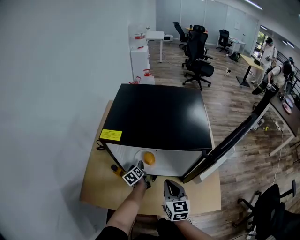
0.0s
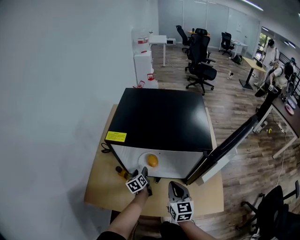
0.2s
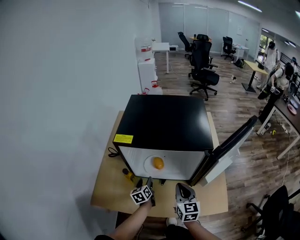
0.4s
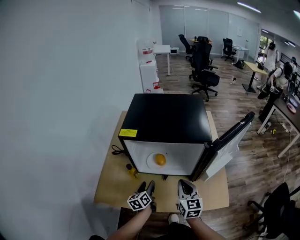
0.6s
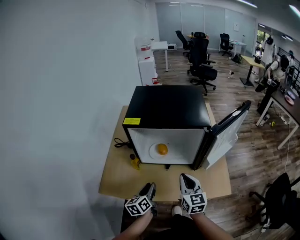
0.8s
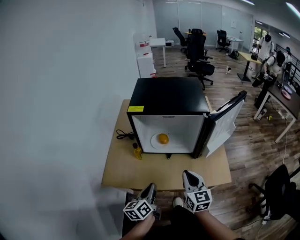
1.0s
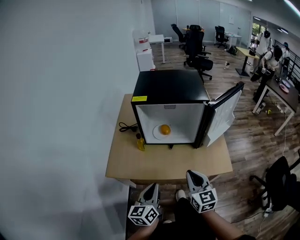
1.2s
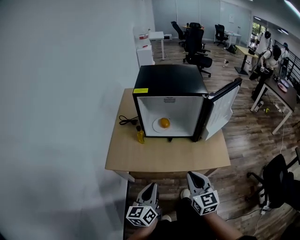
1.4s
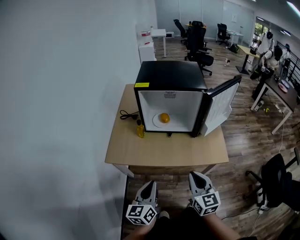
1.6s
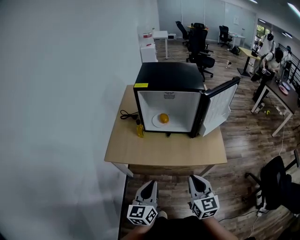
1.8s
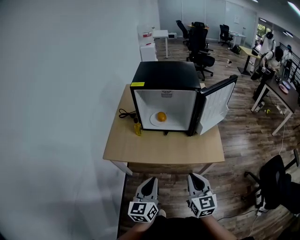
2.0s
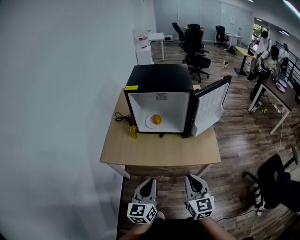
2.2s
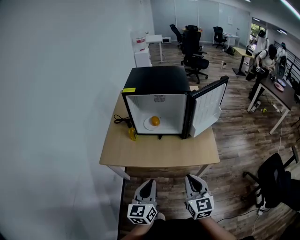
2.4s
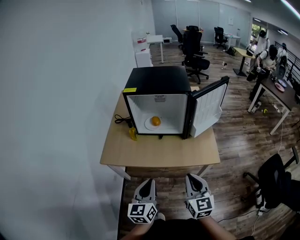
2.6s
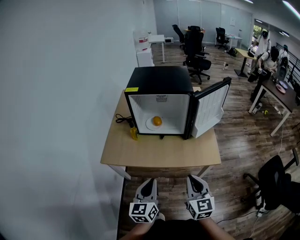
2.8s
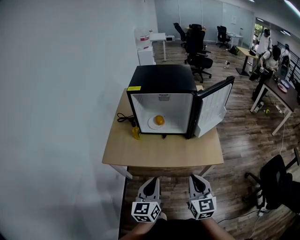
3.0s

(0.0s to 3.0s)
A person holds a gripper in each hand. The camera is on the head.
0.0s - 1.6s: The right gripper heads backward, covering roughly 35 cm. Meanwhile the left gripper is displaced backward and upward by about 60 cm, swivels about 40 degrees, and closes up.
1.6s - 3.0s: Both grippers move to the right, about 5 cm.

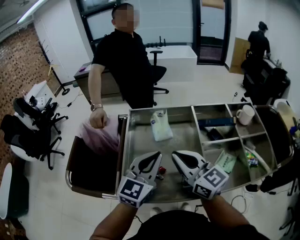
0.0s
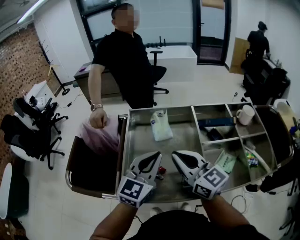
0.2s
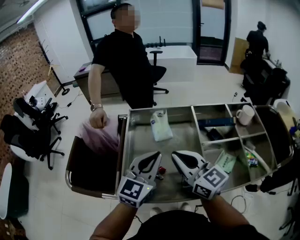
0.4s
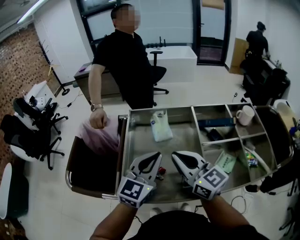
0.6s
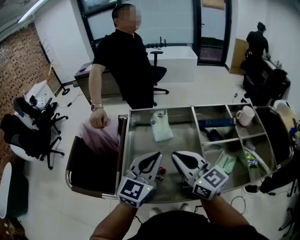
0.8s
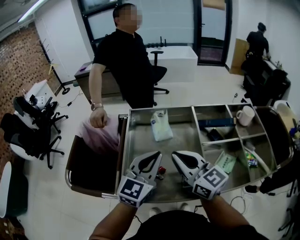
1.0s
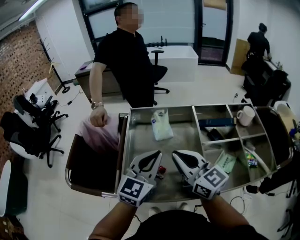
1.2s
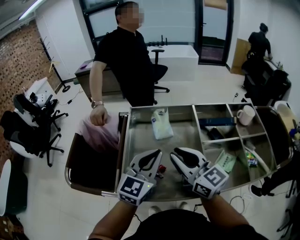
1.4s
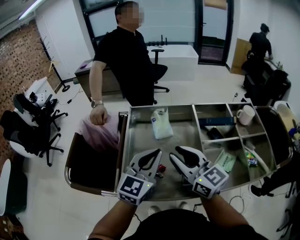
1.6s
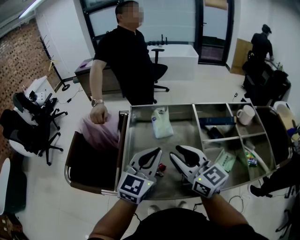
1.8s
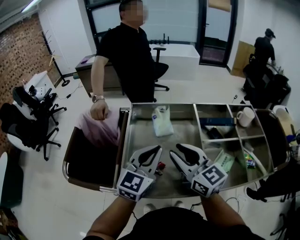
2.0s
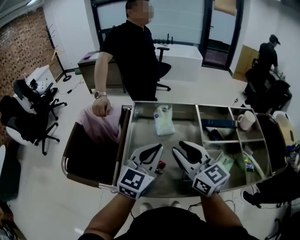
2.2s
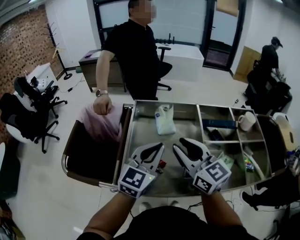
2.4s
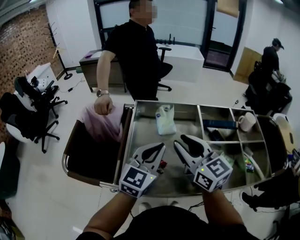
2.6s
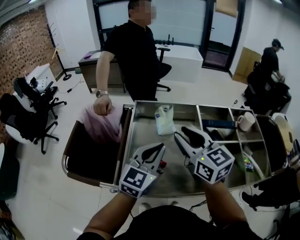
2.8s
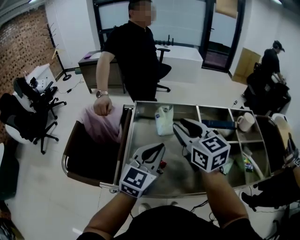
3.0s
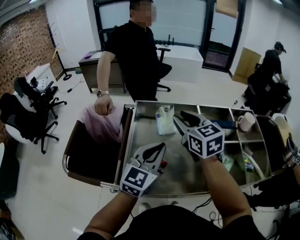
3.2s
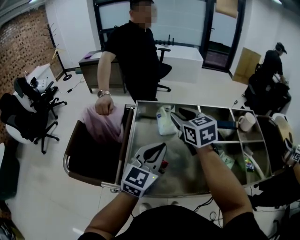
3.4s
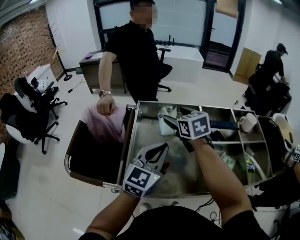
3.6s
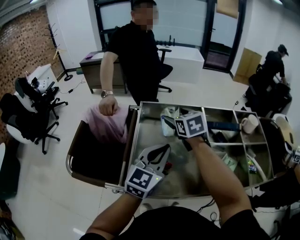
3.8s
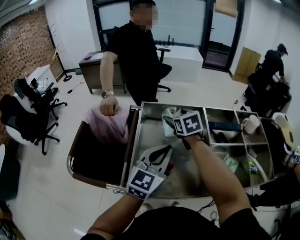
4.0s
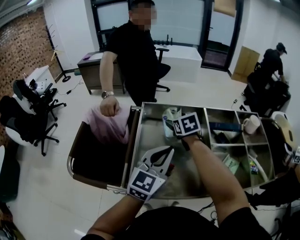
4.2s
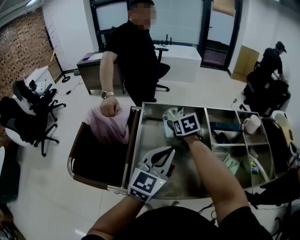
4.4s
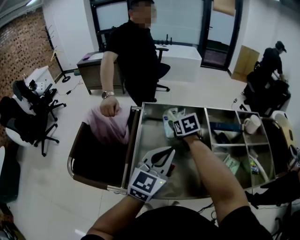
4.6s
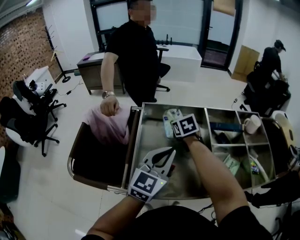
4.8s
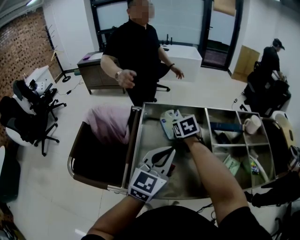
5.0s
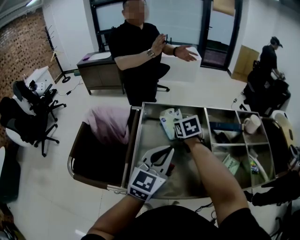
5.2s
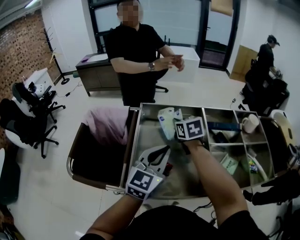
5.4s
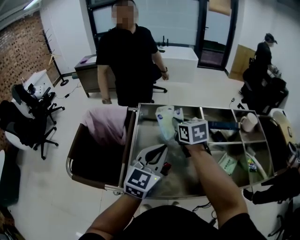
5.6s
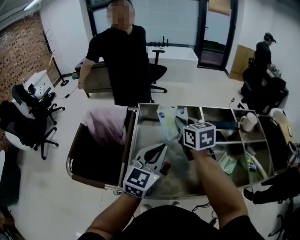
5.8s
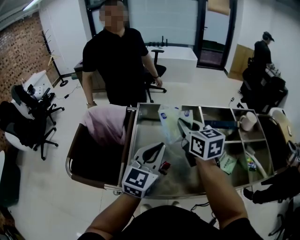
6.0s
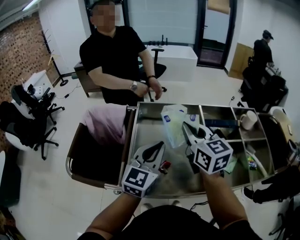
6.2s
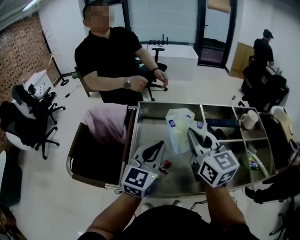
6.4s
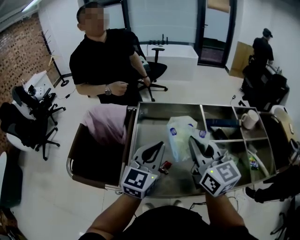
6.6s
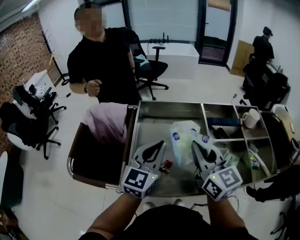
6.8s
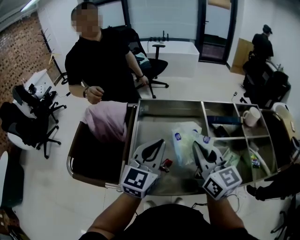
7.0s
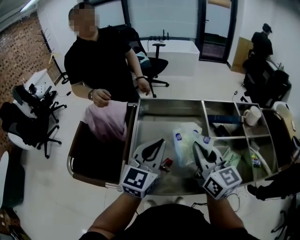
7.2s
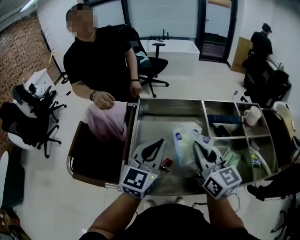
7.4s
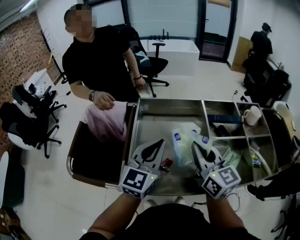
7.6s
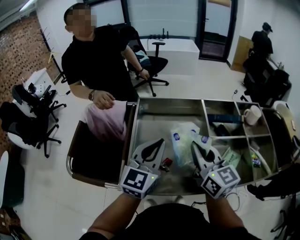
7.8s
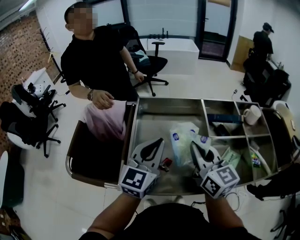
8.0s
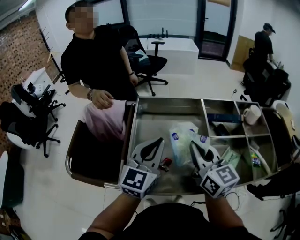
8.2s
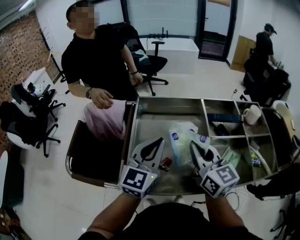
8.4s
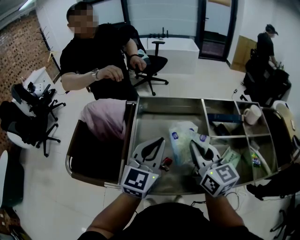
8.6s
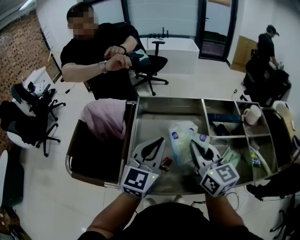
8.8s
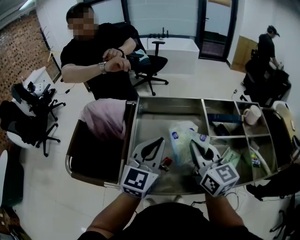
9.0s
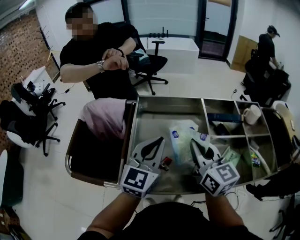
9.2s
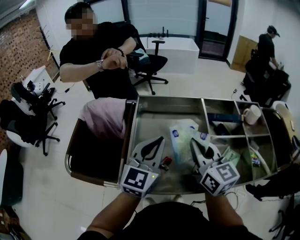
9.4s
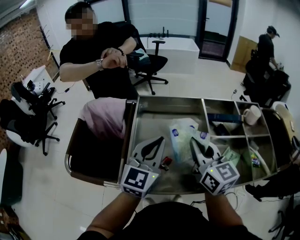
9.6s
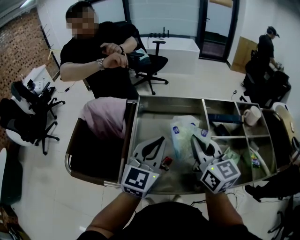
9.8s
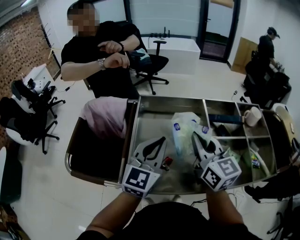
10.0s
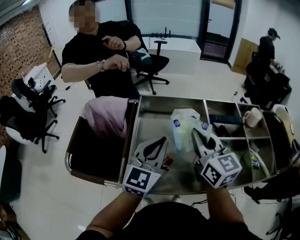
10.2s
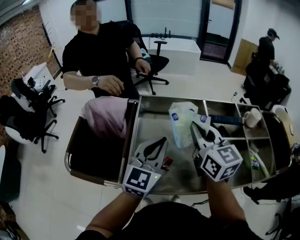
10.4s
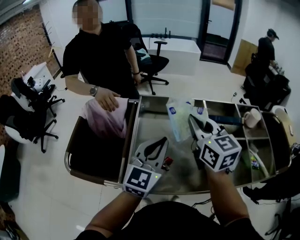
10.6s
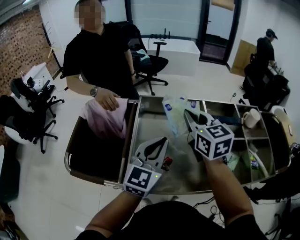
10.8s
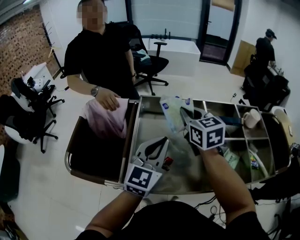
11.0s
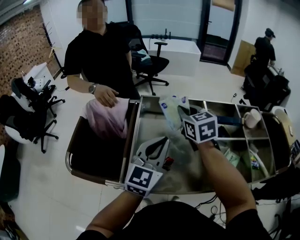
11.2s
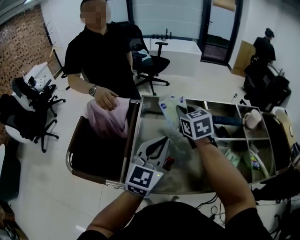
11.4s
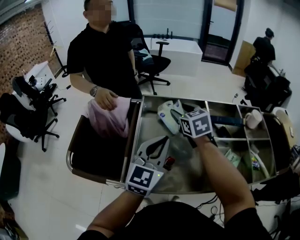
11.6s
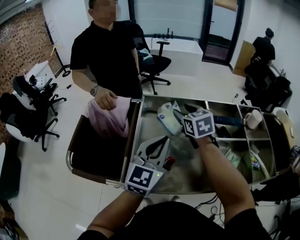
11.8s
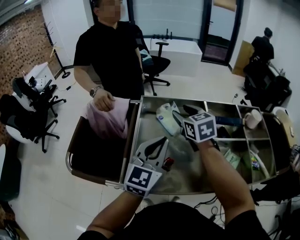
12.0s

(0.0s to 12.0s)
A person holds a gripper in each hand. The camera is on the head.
0.0s - 1.6s: The right gripper opens its fingers.
1.6s - 3.0s: The right gripper travels forward by roughly 10 cm.
3.0s - 4.4s: The right gripper heads downward and forward, covering approximately 20 cm, swivels some 30 degrees, and opens up.
4.4s - 6.0s: The right gripper heads upward and backward, covering some 15 cm, turns by roughly 30 degrees, and closes its fingers.
6.0s - 7.6s: The right gripper heads backward, covering roughly 10 cm.
7.6s - 9.0s: The two grippers keep their place.
9.0s - 10.4s: The right gripper changes place by about 5 cm.
10.4s - 12.0s: The right gripper goes about 15 cm forward and downward, rotates roughly 20 degrees, and opens its fingers.

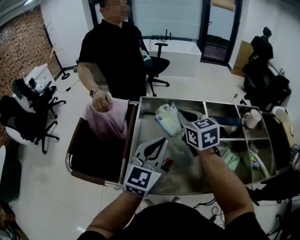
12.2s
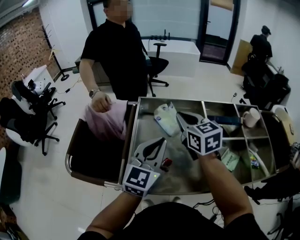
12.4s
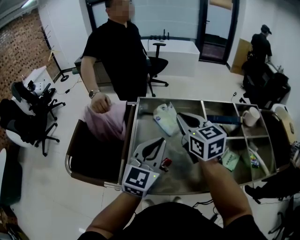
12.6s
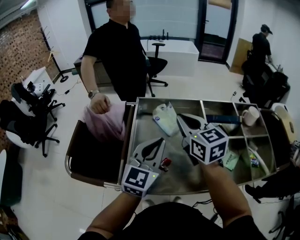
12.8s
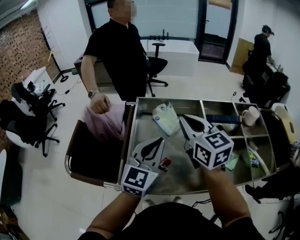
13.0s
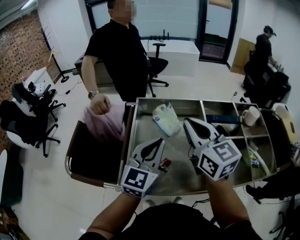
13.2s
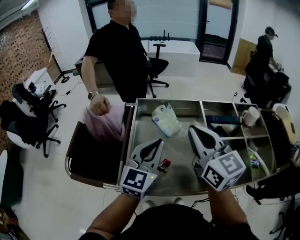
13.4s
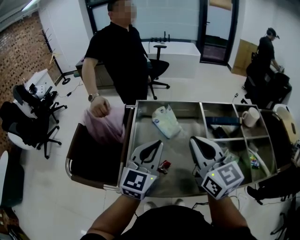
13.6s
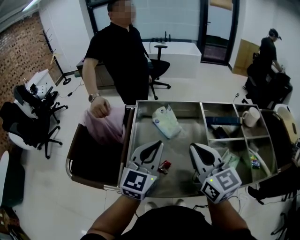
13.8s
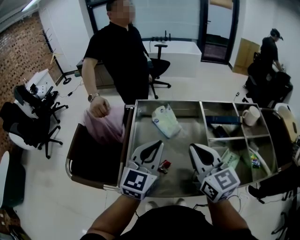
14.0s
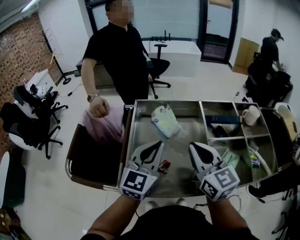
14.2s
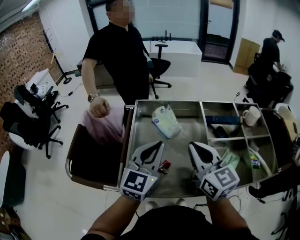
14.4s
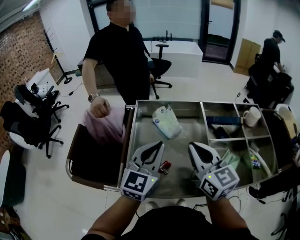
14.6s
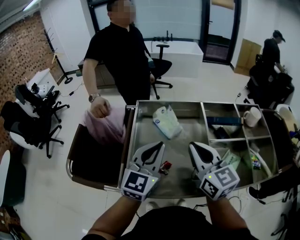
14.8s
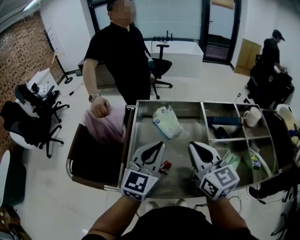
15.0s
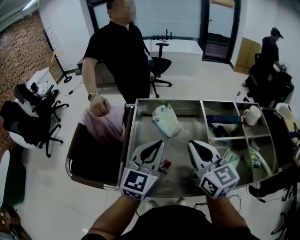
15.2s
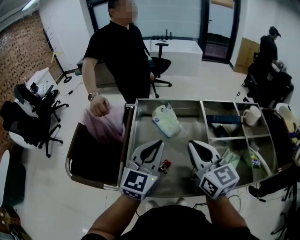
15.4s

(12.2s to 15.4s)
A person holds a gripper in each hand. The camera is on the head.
12.2s - 13.8s: The right gripper shifts approximately 15 cm backward.
13.8s - 15.4s: The grippers make only small movements.

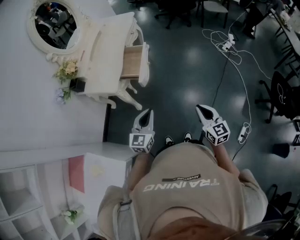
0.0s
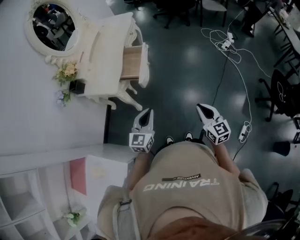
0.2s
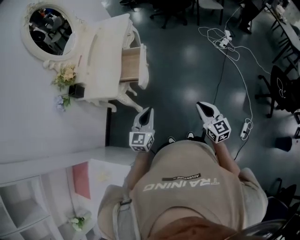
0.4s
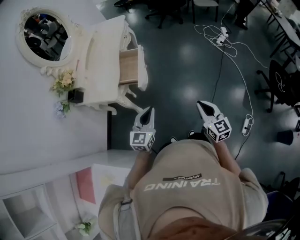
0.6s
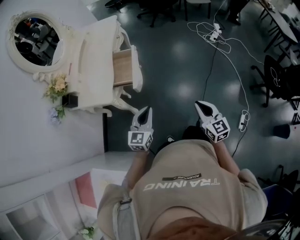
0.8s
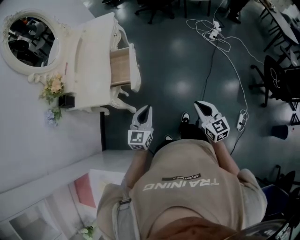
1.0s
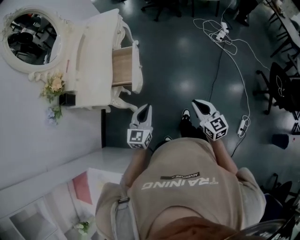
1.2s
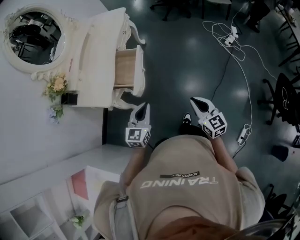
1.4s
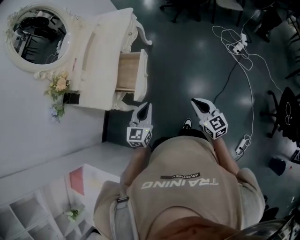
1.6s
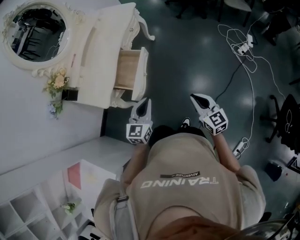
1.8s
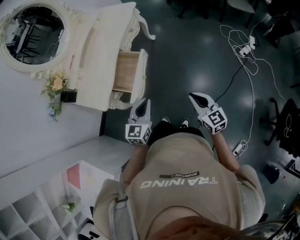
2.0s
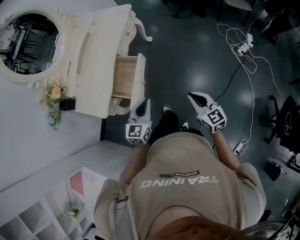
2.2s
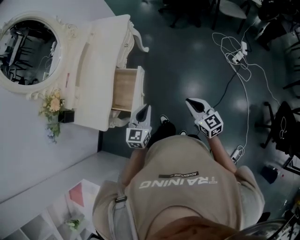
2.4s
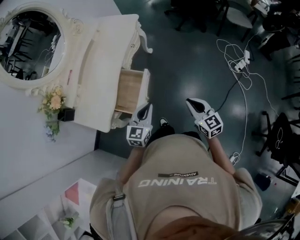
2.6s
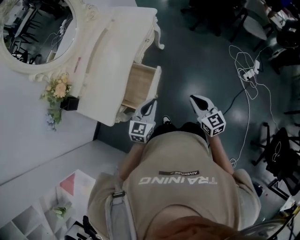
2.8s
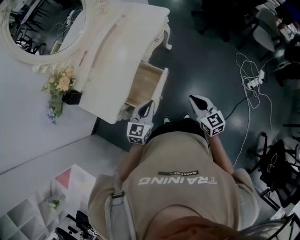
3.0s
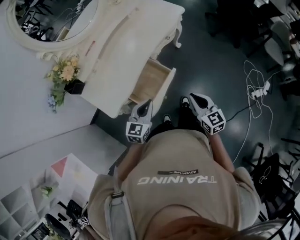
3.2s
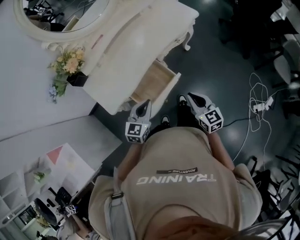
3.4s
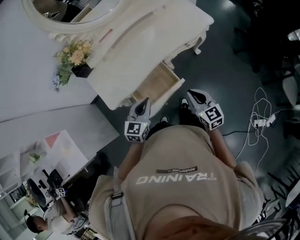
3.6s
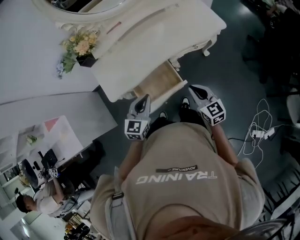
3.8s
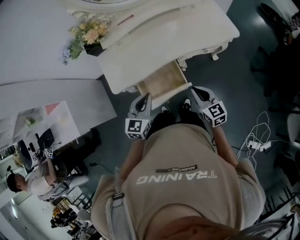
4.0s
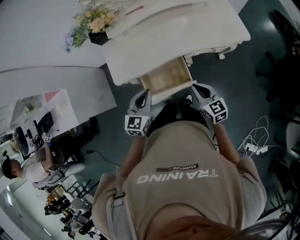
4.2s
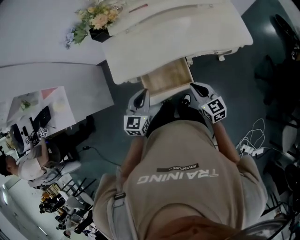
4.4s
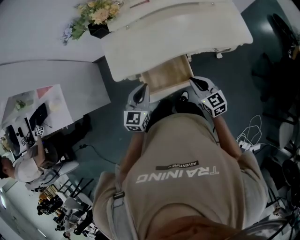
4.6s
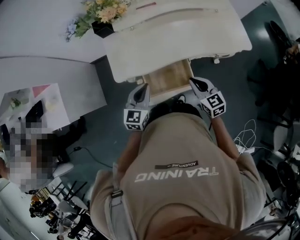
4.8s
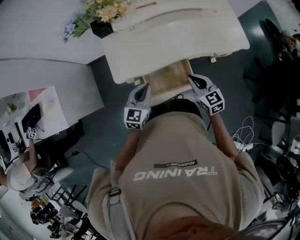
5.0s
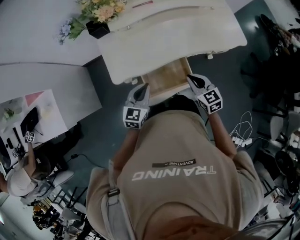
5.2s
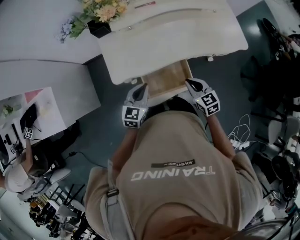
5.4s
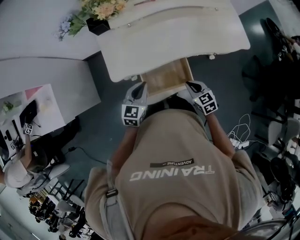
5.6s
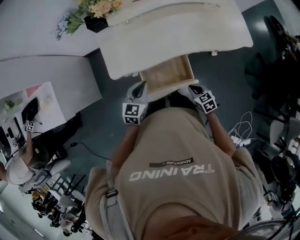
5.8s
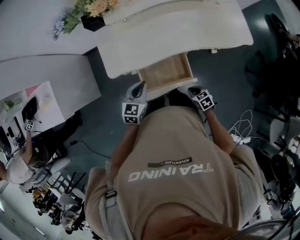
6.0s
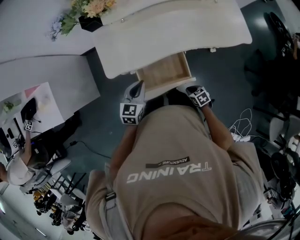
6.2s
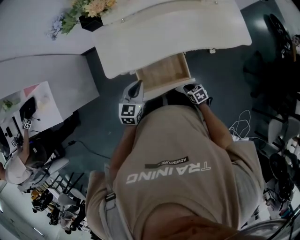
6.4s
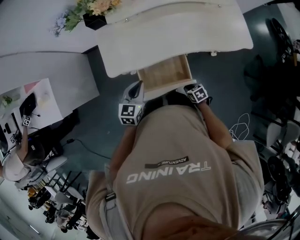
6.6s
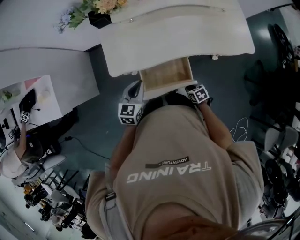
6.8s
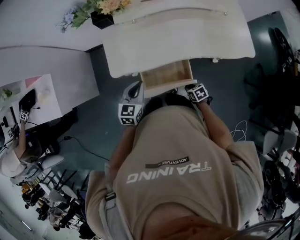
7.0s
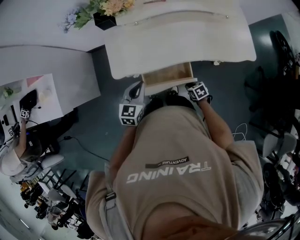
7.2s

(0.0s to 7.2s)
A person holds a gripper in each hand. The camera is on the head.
0.0s - 1.4s: Both grippers travel together forward, roughly 20 cm.
1.4s - 2.8s: The grippers both shift forward by roughly 30 cm.
2.8s - 4.4s: The left gripper shifts by approximately 15 cm, and turns by some 60 degrees. Meanwhile the right gripper ends up roughly 30 cm from where it was, and rotates approximately 60 degrees.
4.4s - 5.8s: The right gripper travels downward by about 15 cm, and swivels roughly 30 degrees; the left gripper travels downward and to the left by roughly 10 cm.
5.8s - 7.2s: The right gripper is displaced downward by some 10 cm.
